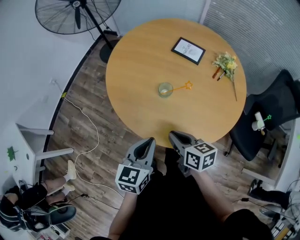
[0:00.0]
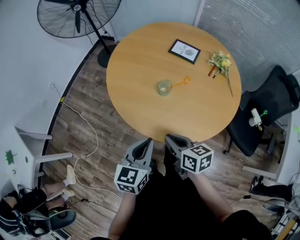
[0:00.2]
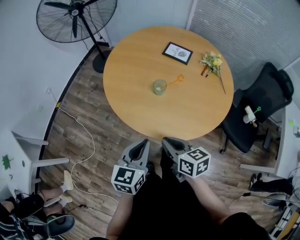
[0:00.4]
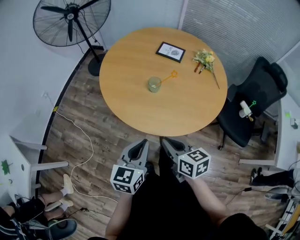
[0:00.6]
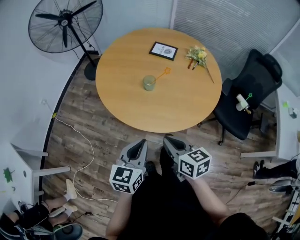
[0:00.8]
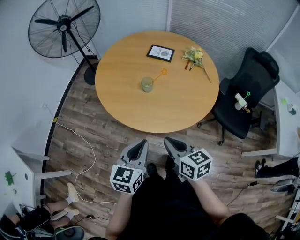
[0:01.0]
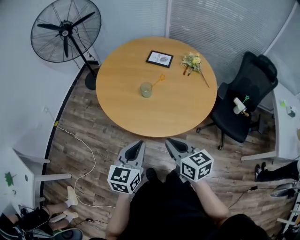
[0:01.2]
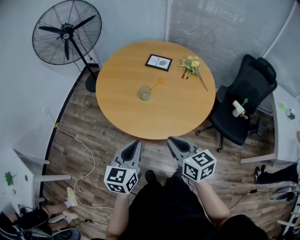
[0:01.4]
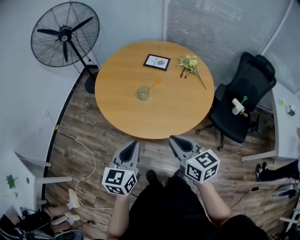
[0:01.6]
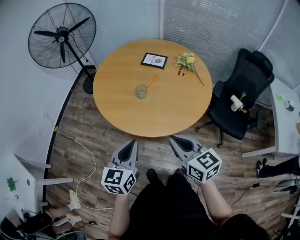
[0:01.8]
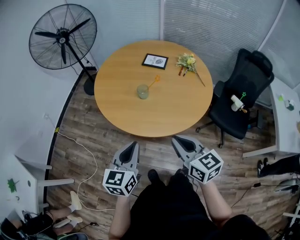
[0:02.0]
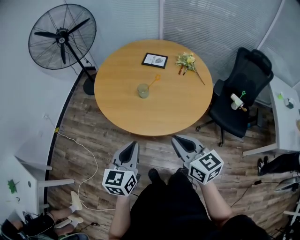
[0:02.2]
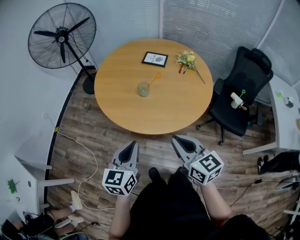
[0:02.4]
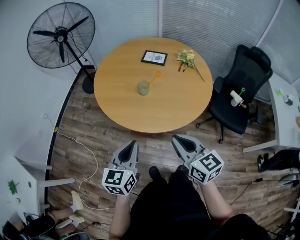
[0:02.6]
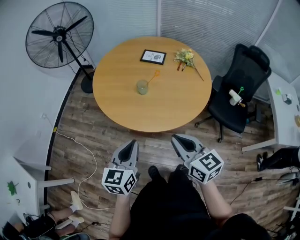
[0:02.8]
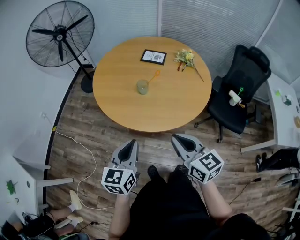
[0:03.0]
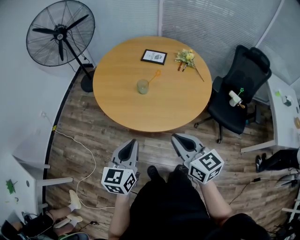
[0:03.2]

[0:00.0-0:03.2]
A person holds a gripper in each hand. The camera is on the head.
0:00.0 to 0:01.6: The two grippers go roughly 20 cm backward and upward. The right gripper turns by some 30 degrees.
0:01.6 to 0:03.2: There are only small adjustments of the grippers.

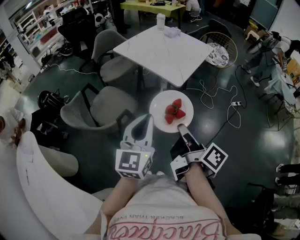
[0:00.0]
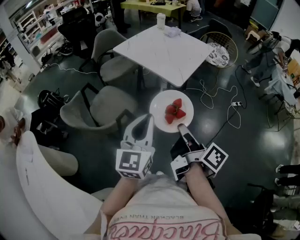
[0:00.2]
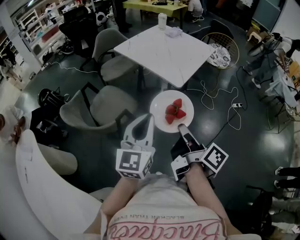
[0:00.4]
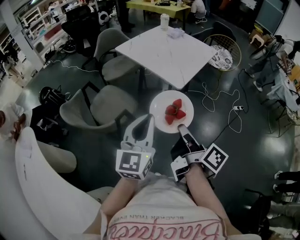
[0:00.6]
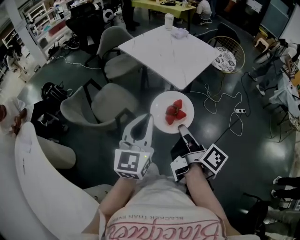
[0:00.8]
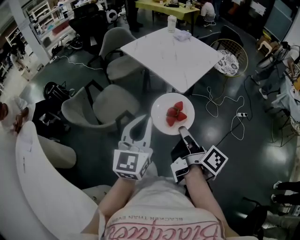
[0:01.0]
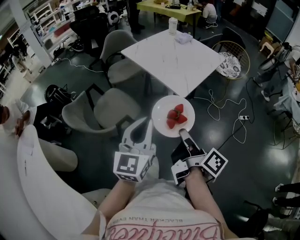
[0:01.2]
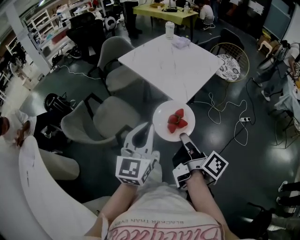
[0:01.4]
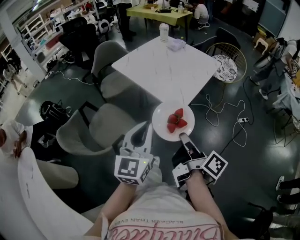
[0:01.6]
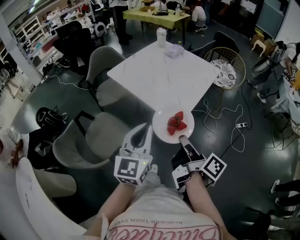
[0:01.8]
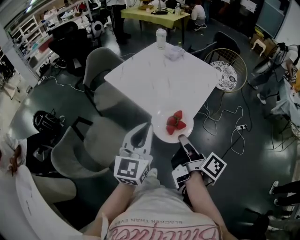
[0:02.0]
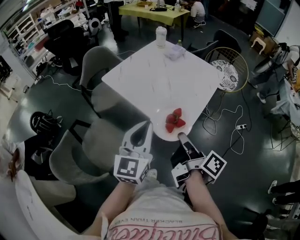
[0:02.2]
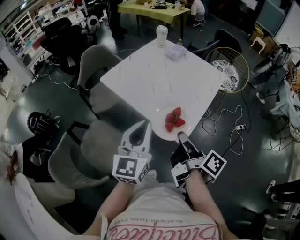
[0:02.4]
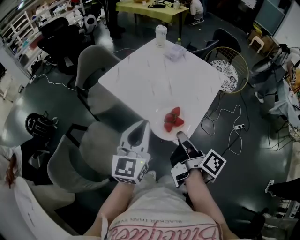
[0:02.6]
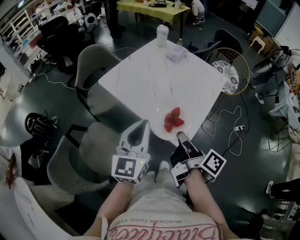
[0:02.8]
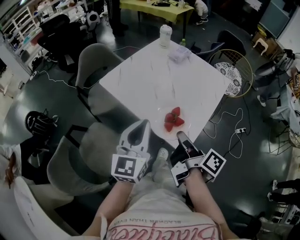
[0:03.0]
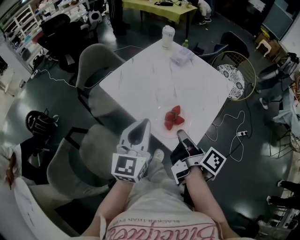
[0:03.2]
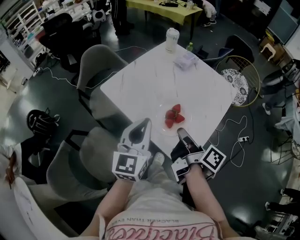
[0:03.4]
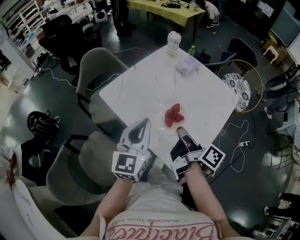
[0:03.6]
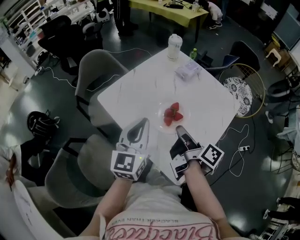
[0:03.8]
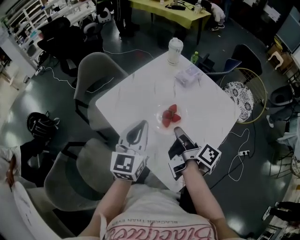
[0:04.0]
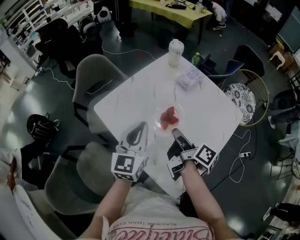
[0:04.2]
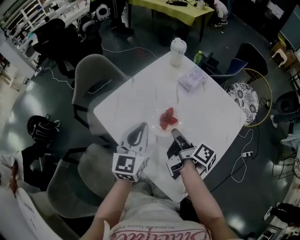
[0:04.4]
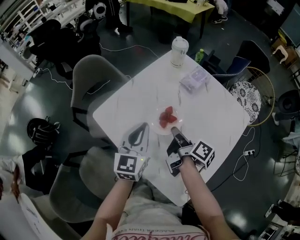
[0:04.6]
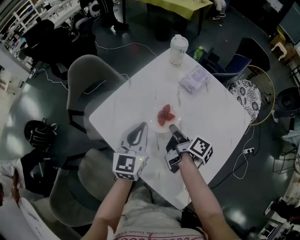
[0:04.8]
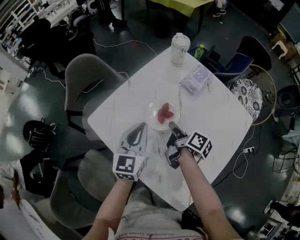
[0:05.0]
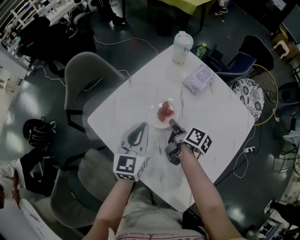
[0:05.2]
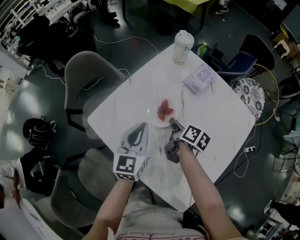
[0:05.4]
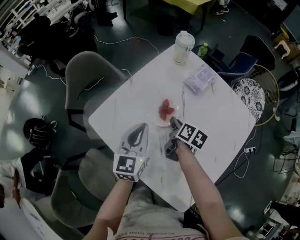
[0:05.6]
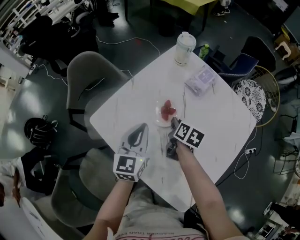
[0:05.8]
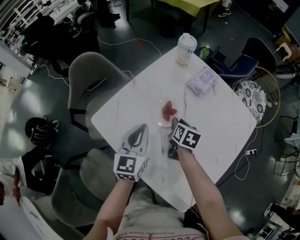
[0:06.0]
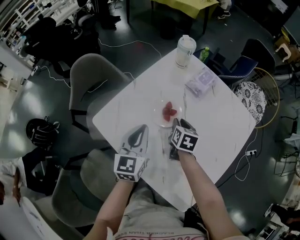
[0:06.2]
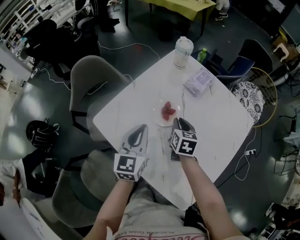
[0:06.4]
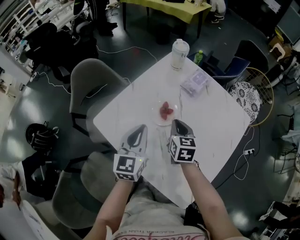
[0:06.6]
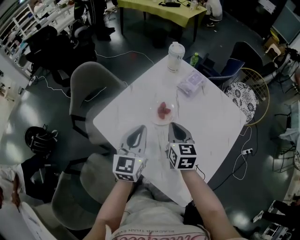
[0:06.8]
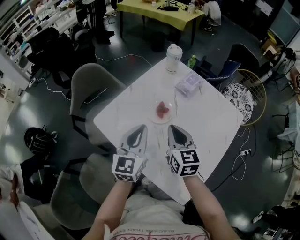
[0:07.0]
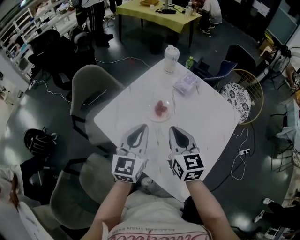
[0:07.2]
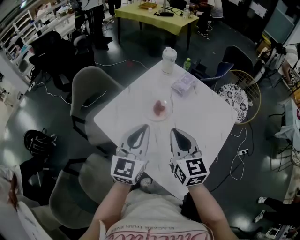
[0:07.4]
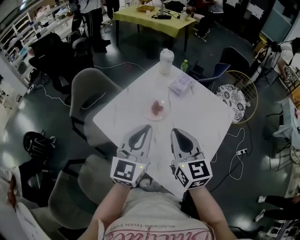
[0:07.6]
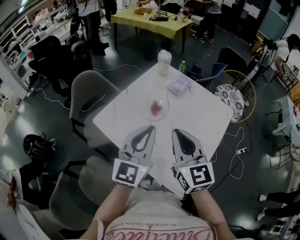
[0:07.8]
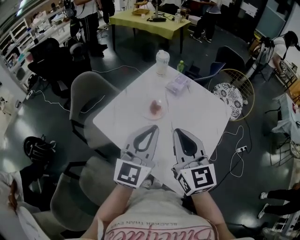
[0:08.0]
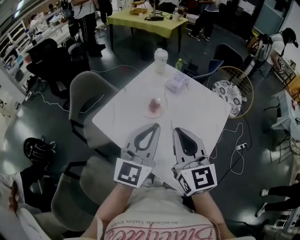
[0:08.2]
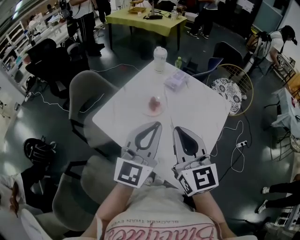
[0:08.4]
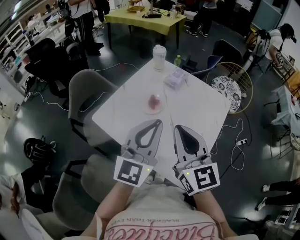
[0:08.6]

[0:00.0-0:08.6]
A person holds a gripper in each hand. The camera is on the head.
0:00.0 to 0:01.4: The grippers both shift forward by about 10 cm.
0:01.4 to 0:02.8: The grippers both shift forward by some 35 cm.
0:02.8 to 0:04.4: Both grippers move forward, about 35 cm.
0:04.4 to 0:05.8: The right gripper travels downward and forward by approximately 20 cm, and changes its angle by about 50 degrees. The left gripper moves forward and downward, approximately 10 cm.
0:05.8 to 0:07.2: The right gripper shifts roughly 25 cm upward and backward, and turns by roughly 50 degrees. The left gripper moves upward and backward, approximately 15 cm.
0:07.2 to 0:08.6: The left gripper heads upward, backward and to the right, covering about 15 cm; the right gripper goes about 15 cm upward and backward.

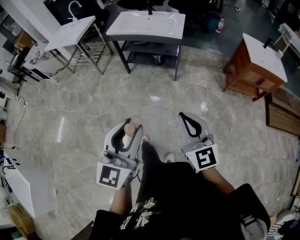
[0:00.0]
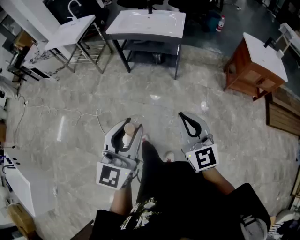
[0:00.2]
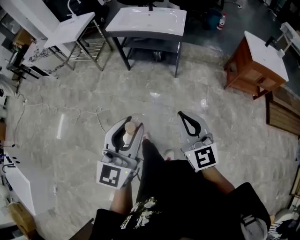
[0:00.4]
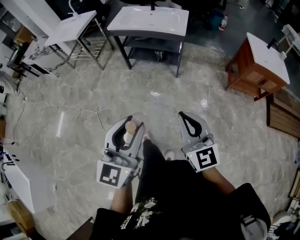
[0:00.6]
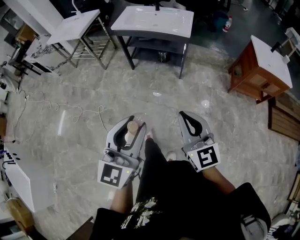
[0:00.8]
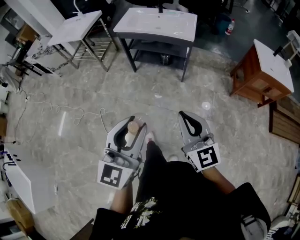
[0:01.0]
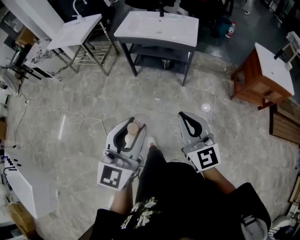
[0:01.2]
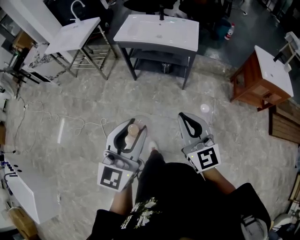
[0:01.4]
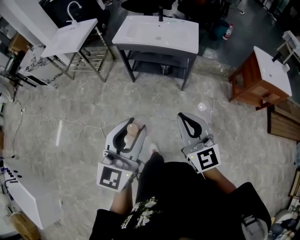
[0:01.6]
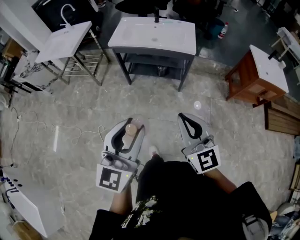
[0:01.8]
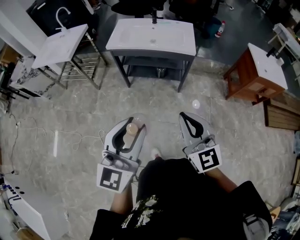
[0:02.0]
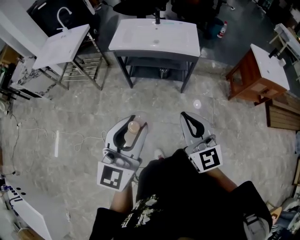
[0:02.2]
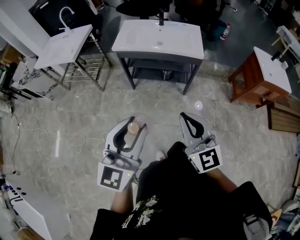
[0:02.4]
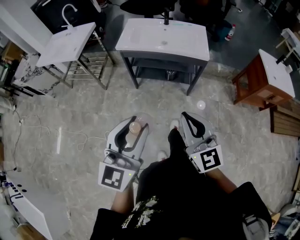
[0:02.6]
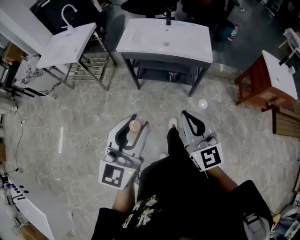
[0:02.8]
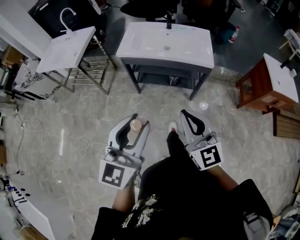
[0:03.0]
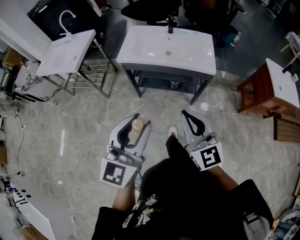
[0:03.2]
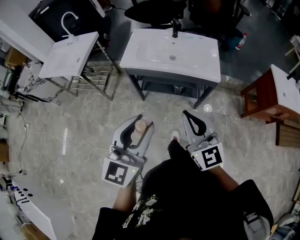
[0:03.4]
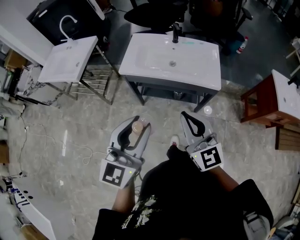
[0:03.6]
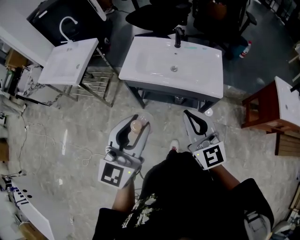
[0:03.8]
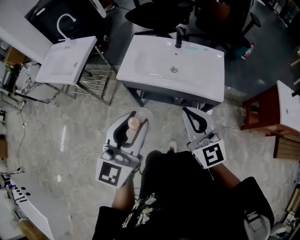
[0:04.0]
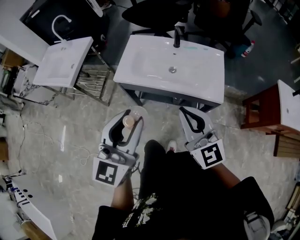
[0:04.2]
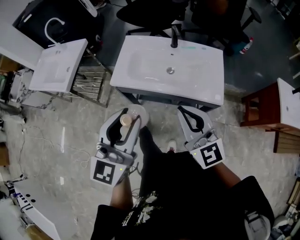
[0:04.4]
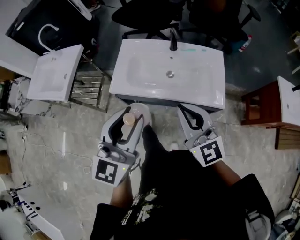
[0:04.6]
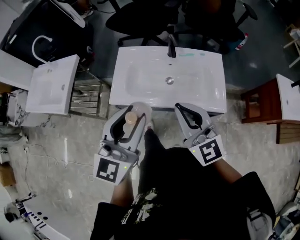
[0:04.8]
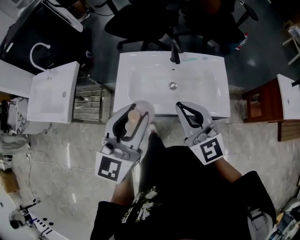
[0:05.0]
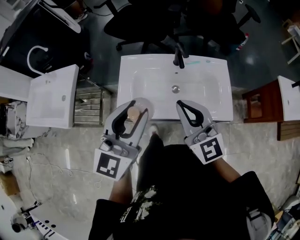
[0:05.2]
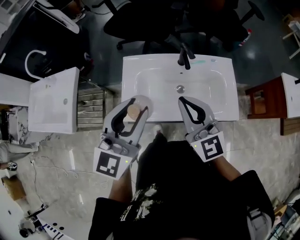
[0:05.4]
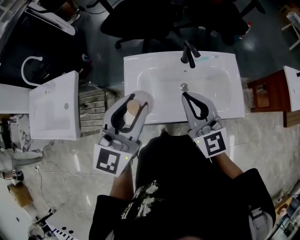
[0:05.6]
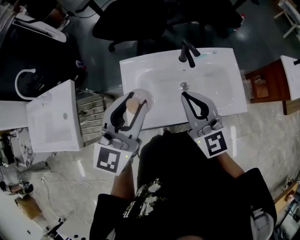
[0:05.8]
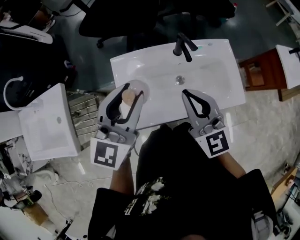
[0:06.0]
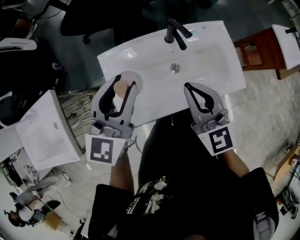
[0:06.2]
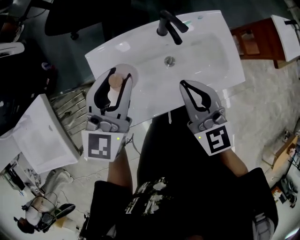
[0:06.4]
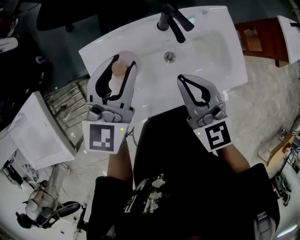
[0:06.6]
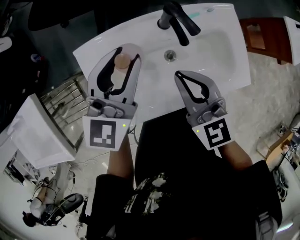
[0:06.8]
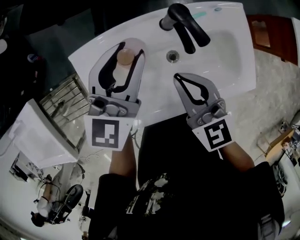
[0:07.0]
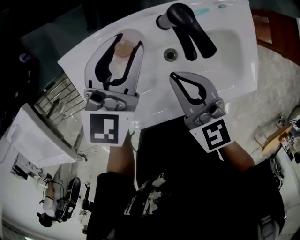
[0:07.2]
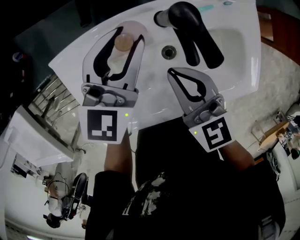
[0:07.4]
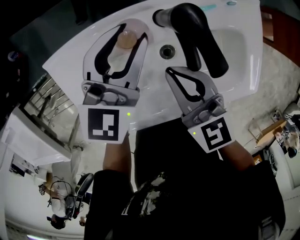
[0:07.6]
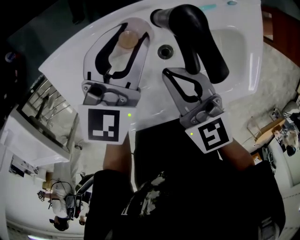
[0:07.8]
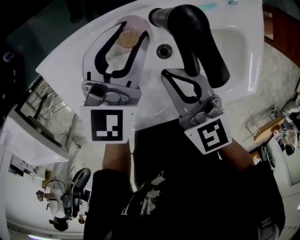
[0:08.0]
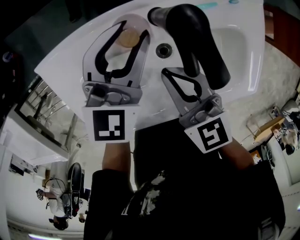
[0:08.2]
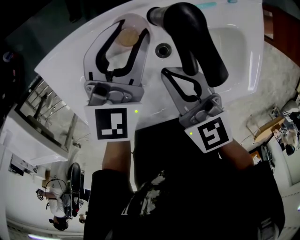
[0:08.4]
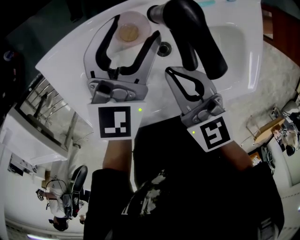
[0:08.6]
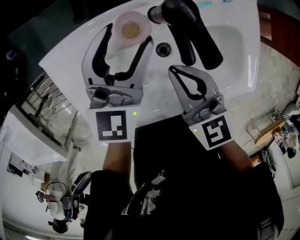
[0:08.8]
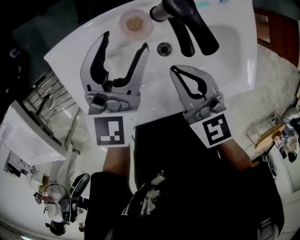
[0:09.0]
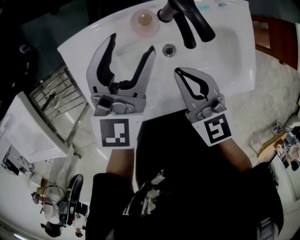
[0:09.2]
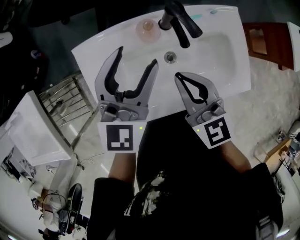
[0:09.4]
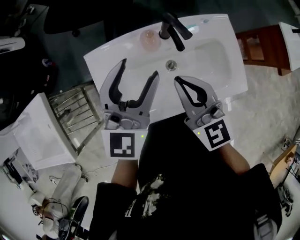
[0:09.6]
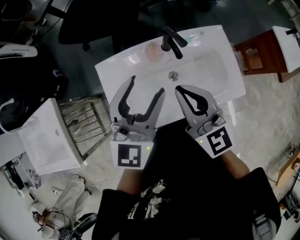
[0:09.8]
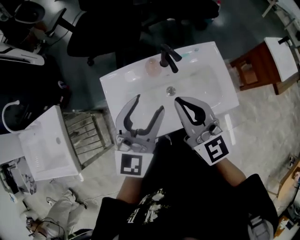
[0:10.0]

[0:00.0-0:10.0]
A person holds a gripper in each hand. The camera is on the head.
0:00.0 to 0:01.4: The two grippers go some 20 cm forward and to the left.
0:01.4 to 0:02.8: Both grippers travel together forward and to the left, some 20 cm.
0:02.8 to 0:04.2: Both grippers travel together forward, roughly 35 cm.
0:04.2 to 0:05.8: The two grippers go some 35 cm forward. The right gripper swivels about 20 degrees, while the left gripper swivels about 20 degrees.
0:05.8 to 0:07.2: The right gripper shifts some 25 cm downward and forward, and rotates some 30 degrees, while the left gripper is displaced forward and downward by about 35 cm.
0:07.2 to 0:08.6: The two grippers go roughly 5 cm downward. The left gripper opens its fingers.
0:08.6 to 0:10.0: The grippers both shift upward and backward by some 30 cm. The right gripper turns by about 30 degrees.

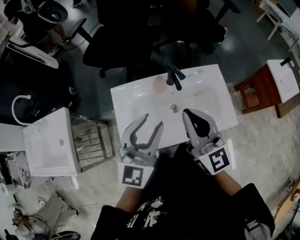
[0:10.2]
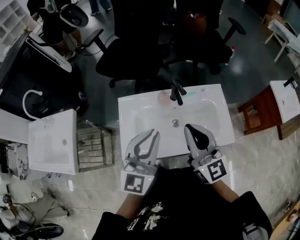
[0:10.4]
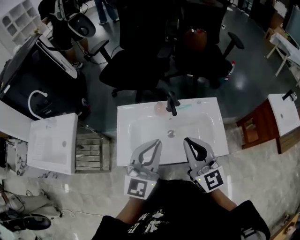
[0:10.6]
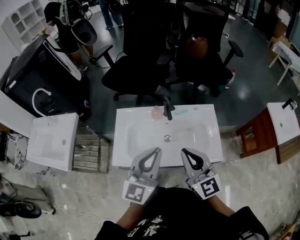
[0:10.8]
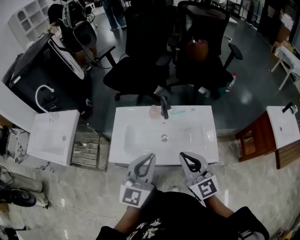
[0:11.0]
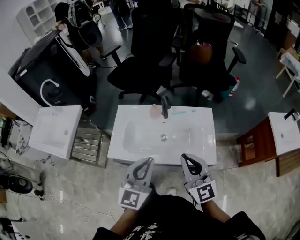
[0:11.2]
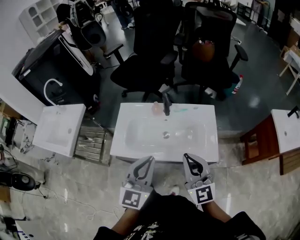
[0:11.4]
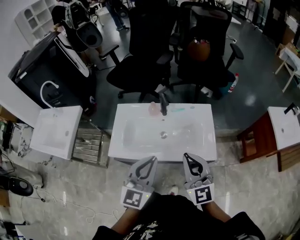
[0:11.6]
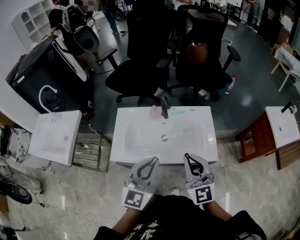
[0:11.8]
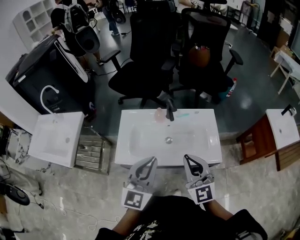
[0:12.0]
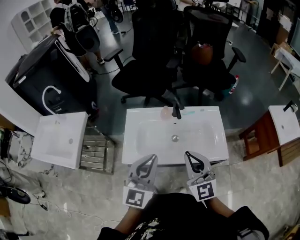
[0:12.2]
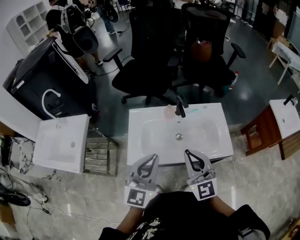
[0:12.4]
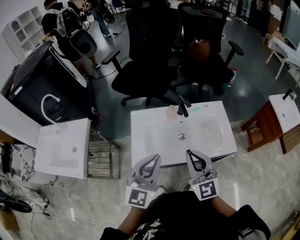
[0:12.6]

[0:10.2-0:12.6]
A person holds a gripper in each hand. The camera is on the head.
0:10.2 to 0:11.4: The left gripper travels backward and to the right by approximately 20 cm, and closes; the right gripper goes some 20 cm to the right and backward.
0:11.4 to 0:12.6: The grippers both shift to the left by about 15 cm.
